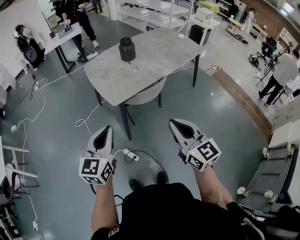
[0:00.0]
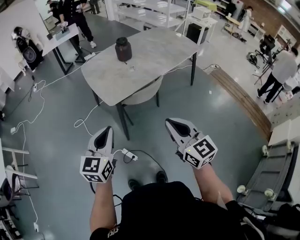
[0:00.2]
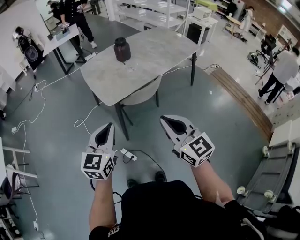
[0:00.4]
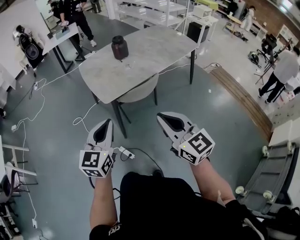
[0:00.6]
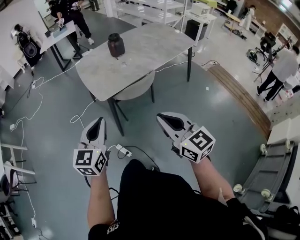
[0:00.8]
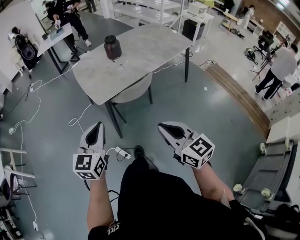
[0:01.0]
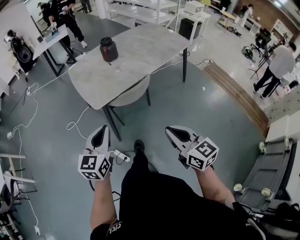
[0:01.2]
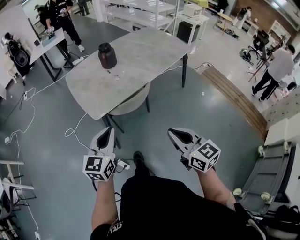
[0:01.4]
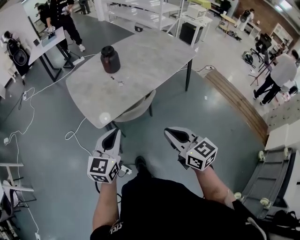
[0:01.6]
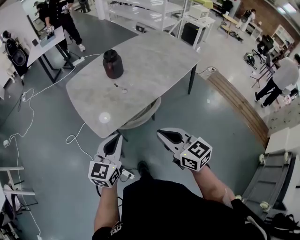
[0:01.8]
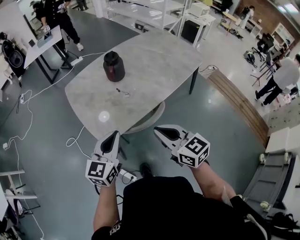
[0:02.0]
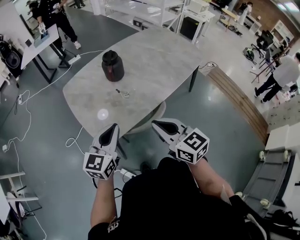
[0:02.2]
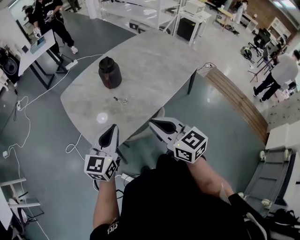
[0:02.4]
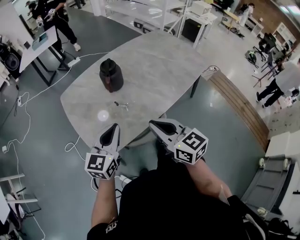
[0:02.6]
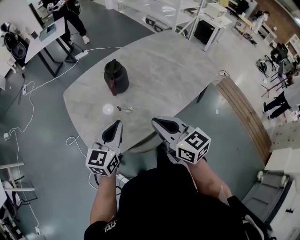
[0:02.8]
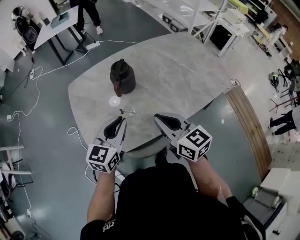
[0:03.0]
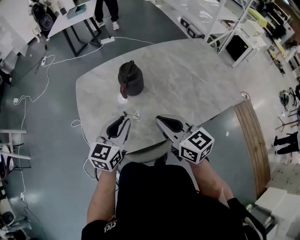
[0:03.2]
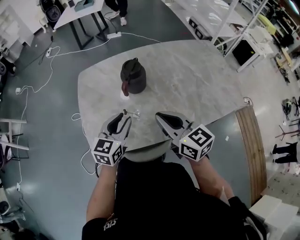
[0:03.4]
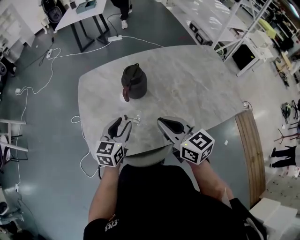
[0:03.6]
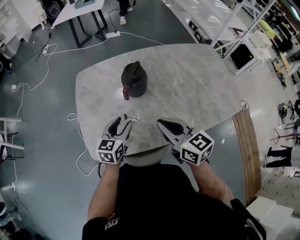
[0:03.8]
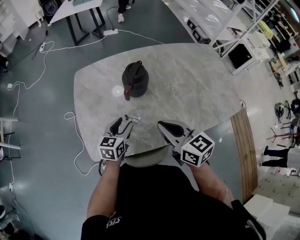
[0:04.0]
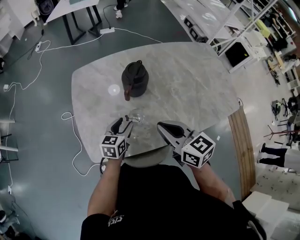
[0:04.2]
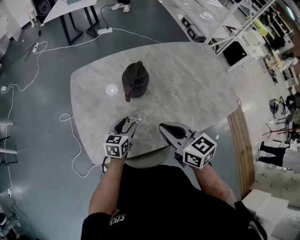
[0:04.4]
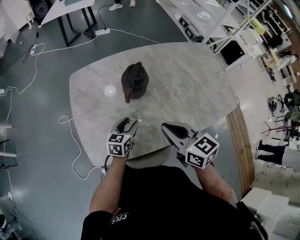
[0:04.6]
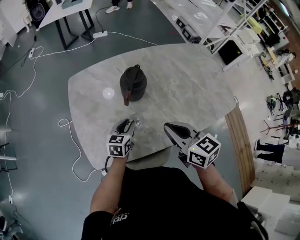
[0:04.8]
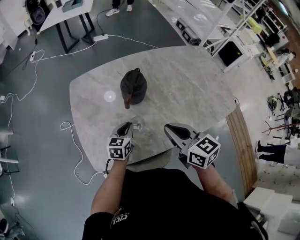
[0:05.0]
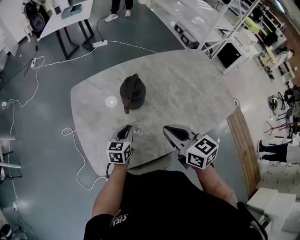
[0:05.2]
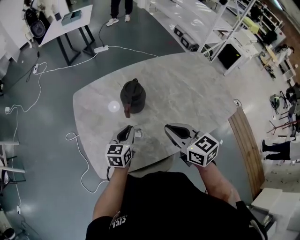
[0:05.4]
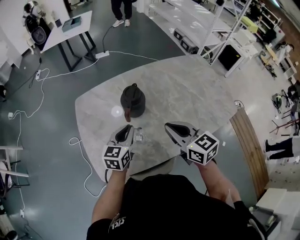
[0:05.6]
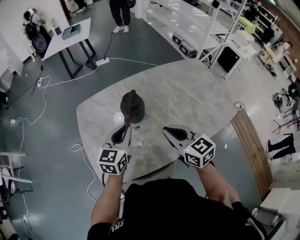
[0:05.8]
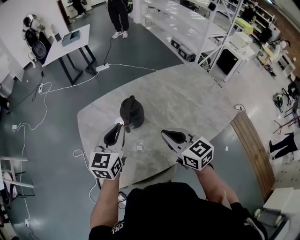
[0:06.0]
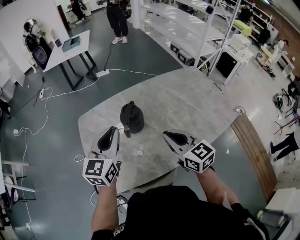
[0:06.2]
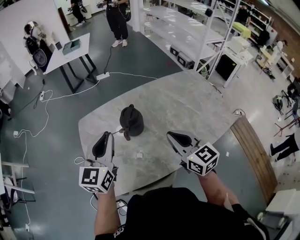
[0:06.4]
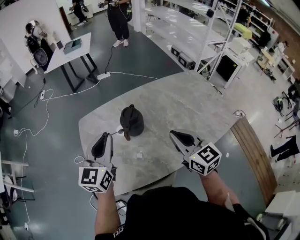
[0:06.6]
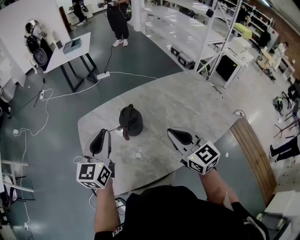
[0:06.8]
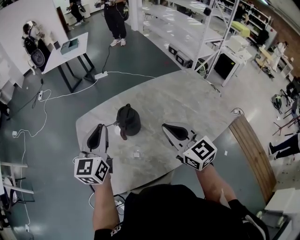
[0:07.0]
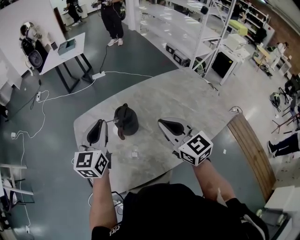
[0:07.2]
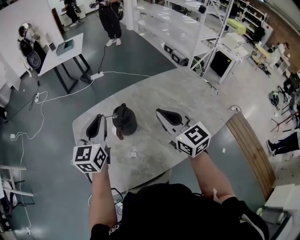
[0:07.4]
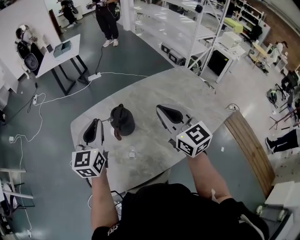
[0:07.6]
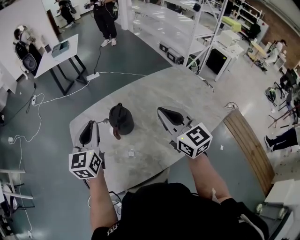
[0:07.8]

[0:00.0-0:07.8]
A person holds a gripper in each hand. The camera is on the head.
0:00.0 to 0:01.6: The left gripper is displaced forward and to the right by approximately 20 cm. Meanwhile the right gripper goes about 15 cm forward, to the right and downward.
0:01.6 to 0:03.2: Both grippers travel together forward, roughly 40 cm. The right gripper changes its angle by roughly 20 degrees.
0:03.2 to 0:04.6: The right gripper moves approximately 5 cm. Meanwhile the left gripper heads downward and forward, covering roughly 20 cm, and opens.
0:04.6 to 0:06.2: The left gripper shifts some 25 cm upward, changes its angle by some 30 degrees, and closes up. The right gripper is displaced upward and to the right by approximately 5 cm.
0:06.2 to 0:07.8: The left gripper ends up approximately 5 cm from where it was. Meanwhile the right gripper travels upward and forward by approximately 10 cm.

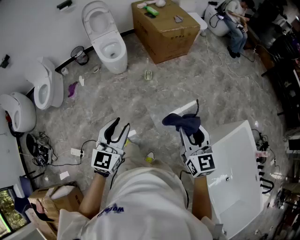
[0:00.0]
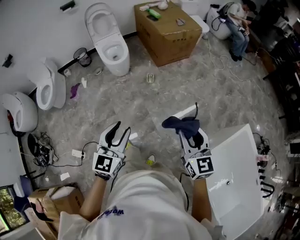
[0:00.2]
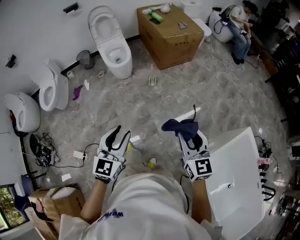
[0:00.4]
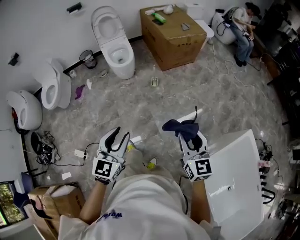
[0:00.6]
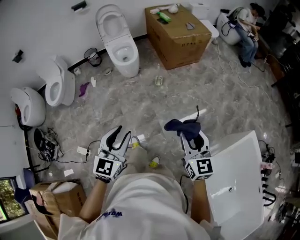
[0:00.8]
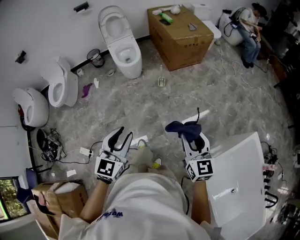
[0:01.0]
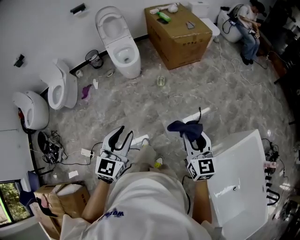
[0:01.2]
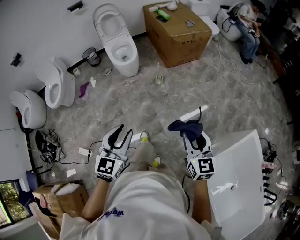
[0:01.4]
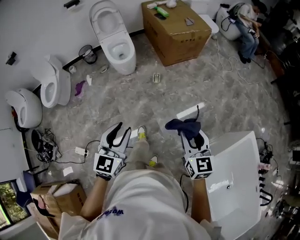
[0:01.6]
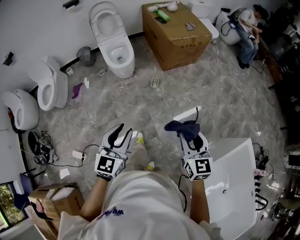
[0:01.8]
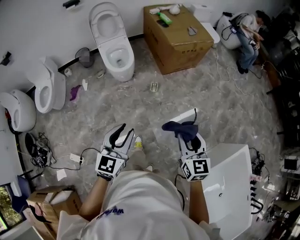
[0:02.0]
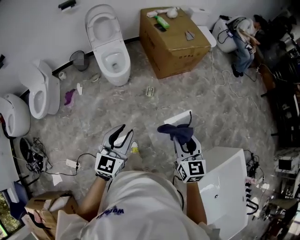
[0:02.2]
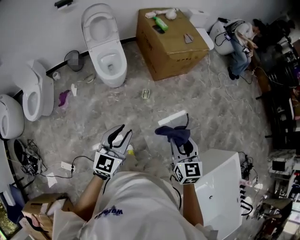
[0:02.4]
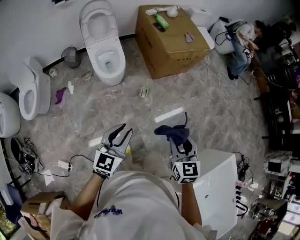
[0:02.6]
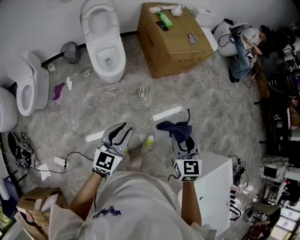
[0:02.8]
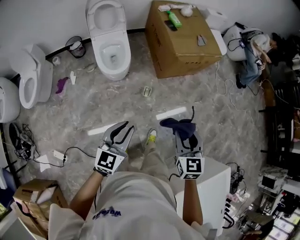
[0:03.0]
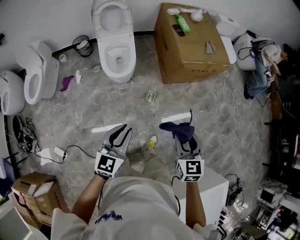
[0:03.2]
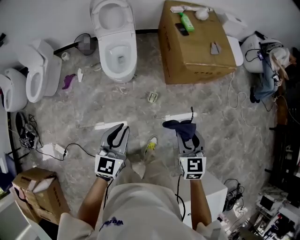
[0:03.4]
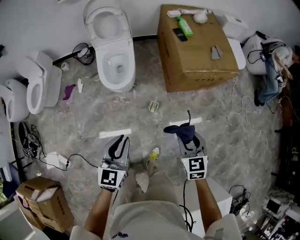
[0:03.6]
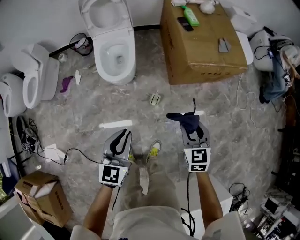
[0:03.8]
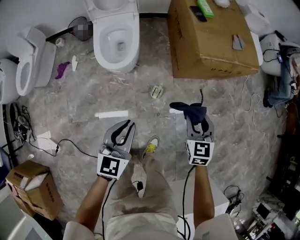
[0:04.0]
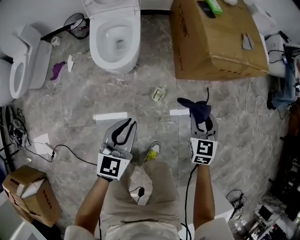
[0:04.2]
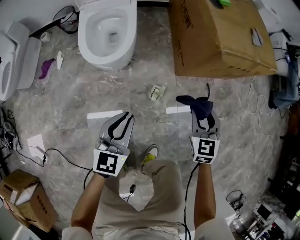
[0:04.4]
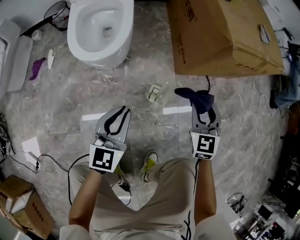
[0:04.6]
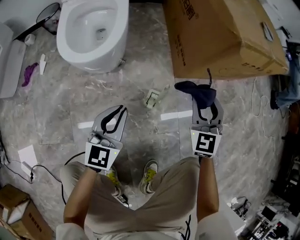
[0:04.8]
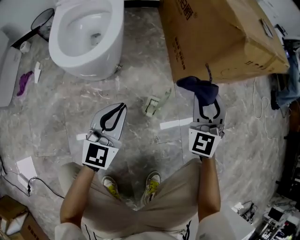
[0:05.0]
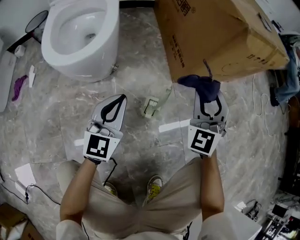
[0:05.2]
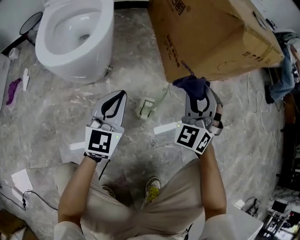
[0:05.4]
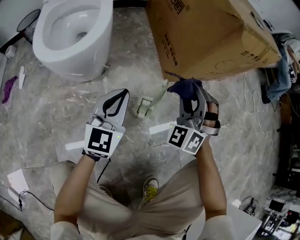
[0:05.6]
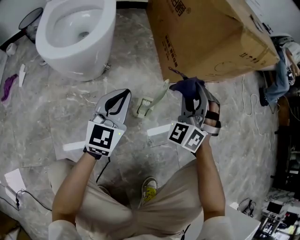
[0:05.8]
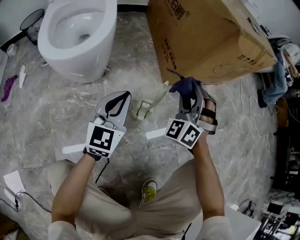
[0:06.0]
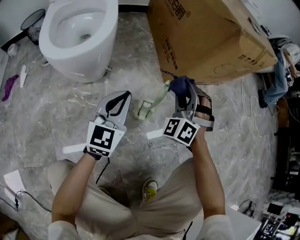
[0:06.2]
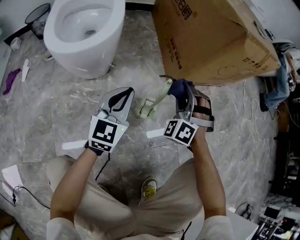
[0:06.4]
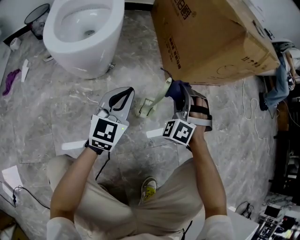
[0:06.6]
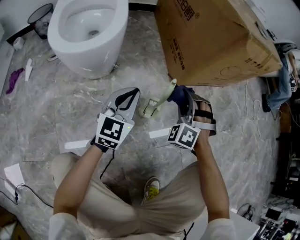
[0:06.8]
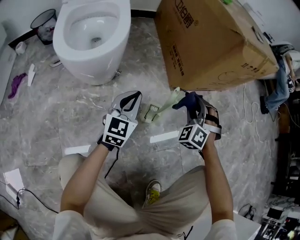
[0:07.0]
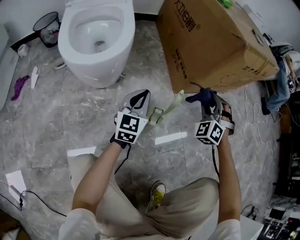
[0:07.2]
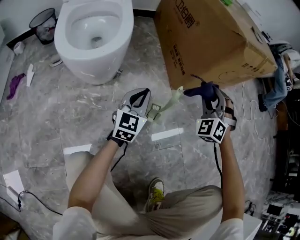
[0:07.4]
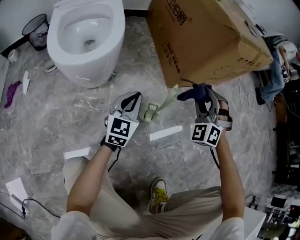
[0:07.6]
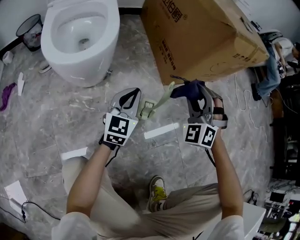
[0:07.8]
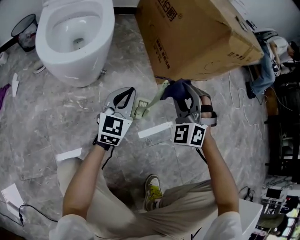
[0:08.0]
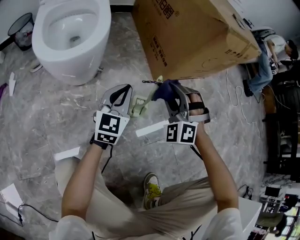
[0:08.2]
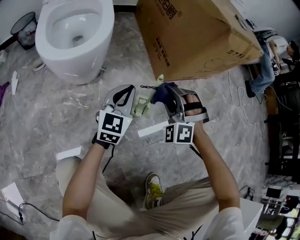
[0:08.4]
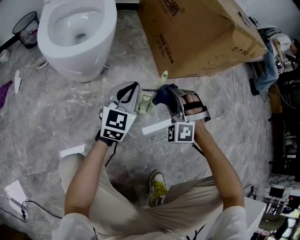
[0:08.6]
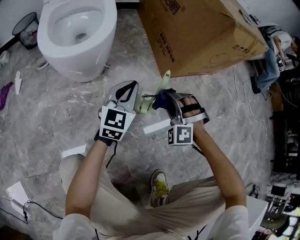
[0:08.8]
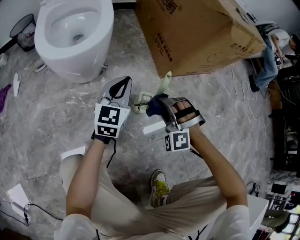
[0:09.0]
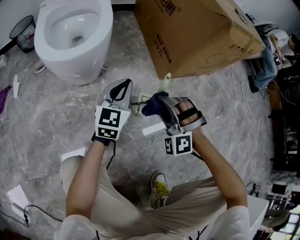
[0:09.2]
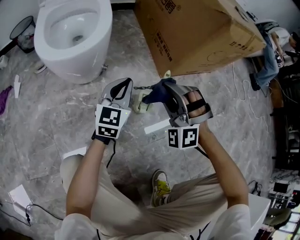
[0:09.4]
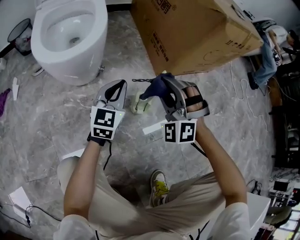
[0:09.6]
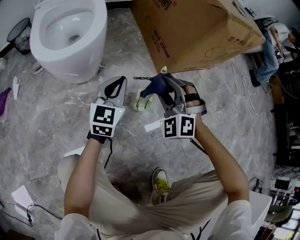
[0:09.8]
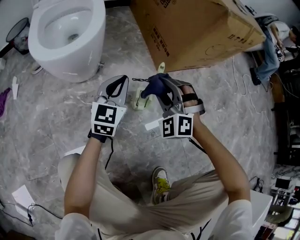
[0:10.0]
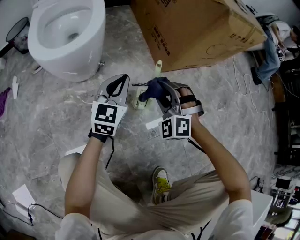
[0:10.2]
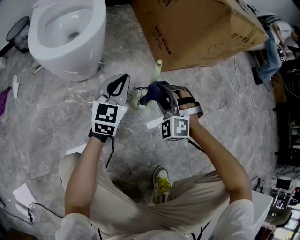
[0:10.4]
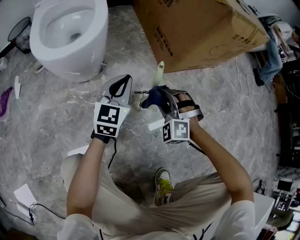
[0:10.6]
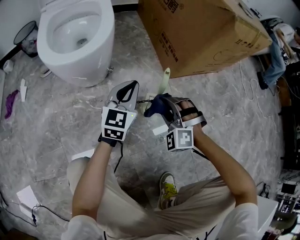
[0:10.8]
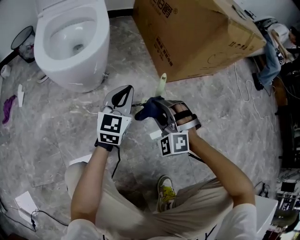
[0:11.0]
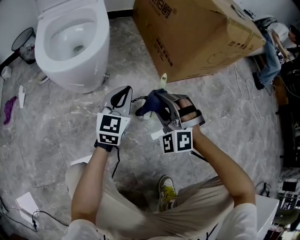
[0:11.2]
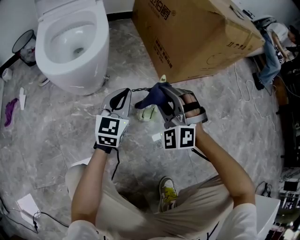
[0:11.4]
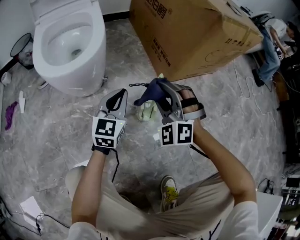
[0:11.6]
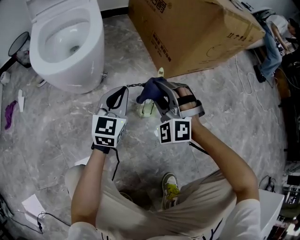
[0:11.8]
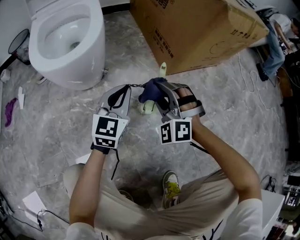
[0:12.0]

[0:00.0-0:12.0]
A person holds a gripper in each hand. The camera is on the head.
0:00.0 to 0:01.6: The right gripper shifts some 5 cm forward.
0:01.6 to 0:03.0: Both grippers move forward, some 30 cm.
0:03.0 to 0:04.4: The grippers both shift downward and forward by some 50 cm.
0:04.4 to 0:06.0: The left gripper goes roughly 30 cm downward and forward, while the right gripper is displaced downward by about 20 cm, and twists approximately 50 degrees counterclockwise, seen from behind.
0:06.0 to 0:07.6: The right gripper travels downward and back again, about 5 cm each way.
0:07.6 to 0:09.0: The right gripper moves downward, backward and to the left, about 15 cm, and rotates some 30 degrees.
0:09.0 to 0:10.4: The right gripper travels upward and back again, roughly 10 cm each way.

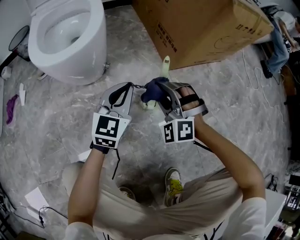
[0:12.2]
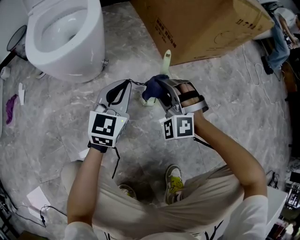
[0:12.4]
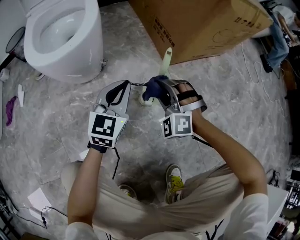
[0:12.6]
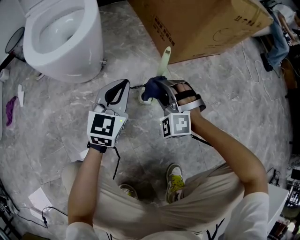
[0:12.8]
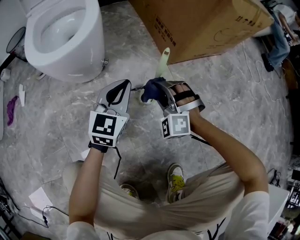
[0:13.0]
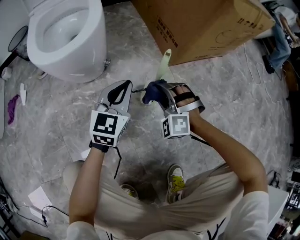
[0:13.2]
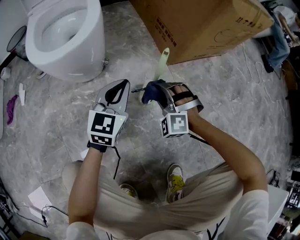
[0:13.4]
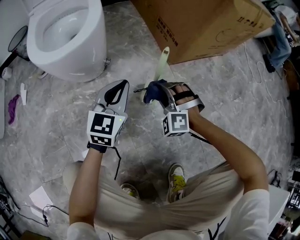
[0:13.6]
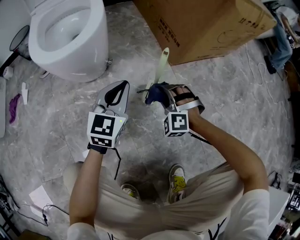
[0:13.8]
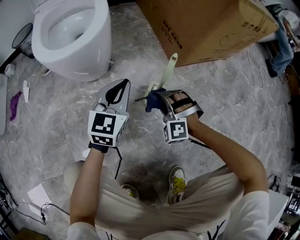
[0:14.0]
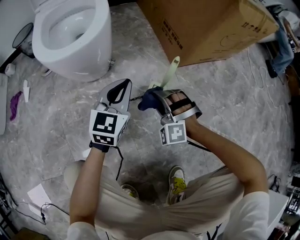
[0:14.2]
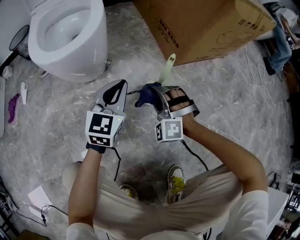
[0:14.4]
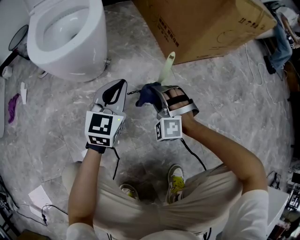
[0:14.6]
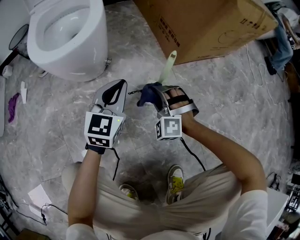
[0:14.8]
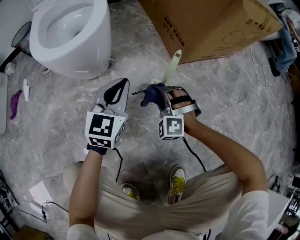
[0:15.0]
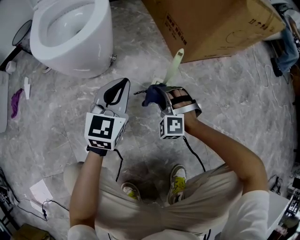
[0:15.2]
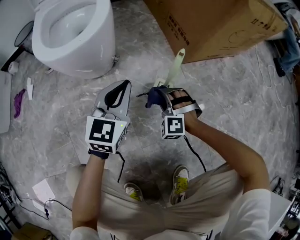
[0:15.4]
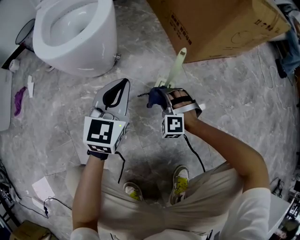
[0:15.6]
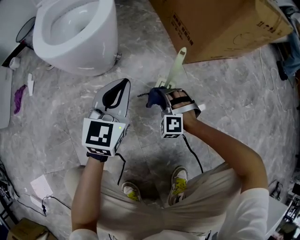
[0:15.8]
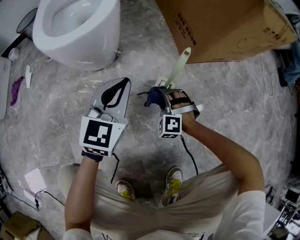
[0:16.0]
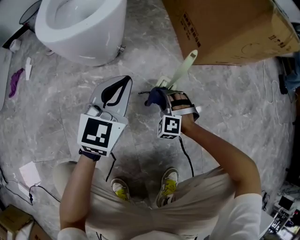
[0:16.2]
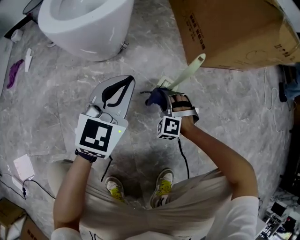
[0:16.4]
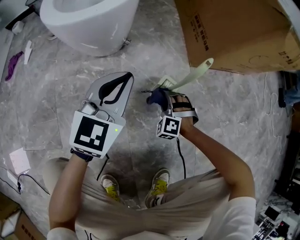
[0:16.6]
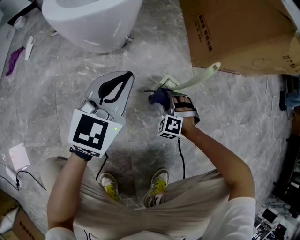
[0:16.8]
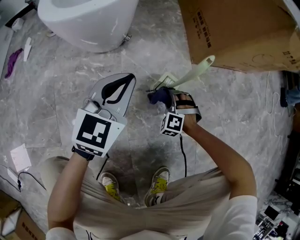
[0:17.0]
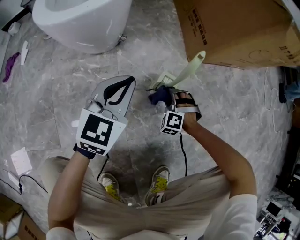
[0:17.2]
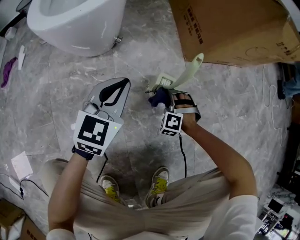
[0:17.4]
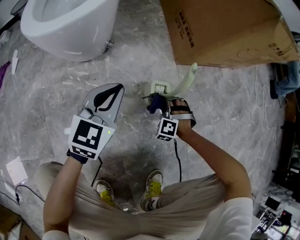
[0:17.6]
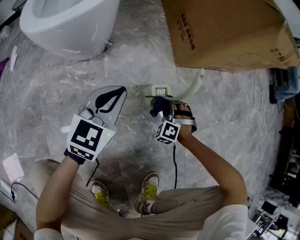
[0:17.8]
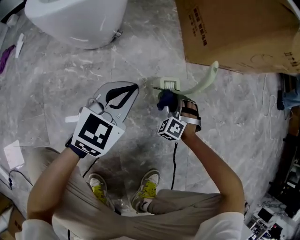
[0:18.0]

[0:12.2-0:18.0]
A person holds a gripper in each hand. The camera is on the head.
0:12.2 to 0:13.6: The right gripper heads downward, covering roughly 10 cm.
0:13.6 to 0:15.0: The grippers move only a little.
0:15.0 to 0:16.6: The right gripper is displaced downward by about 10 cm.
0:16.6 to 0:18.0: The right gripper goes about 10 cm to the right. The left gripper travels downward and to the right by approximately 10 cm.
